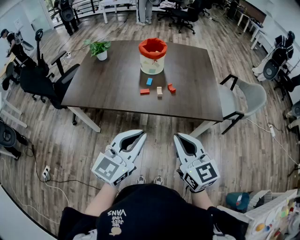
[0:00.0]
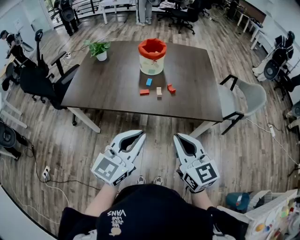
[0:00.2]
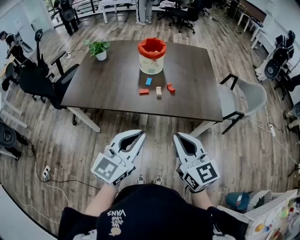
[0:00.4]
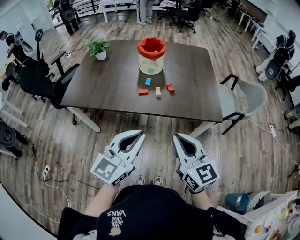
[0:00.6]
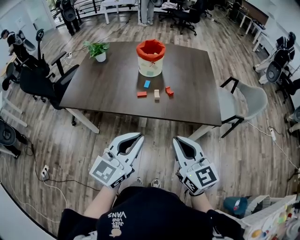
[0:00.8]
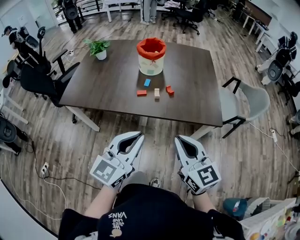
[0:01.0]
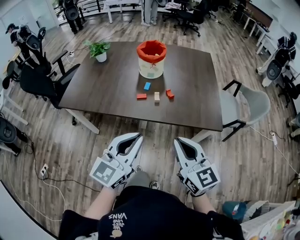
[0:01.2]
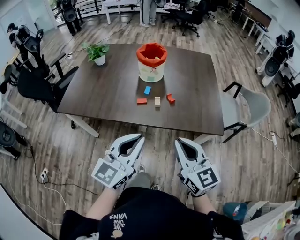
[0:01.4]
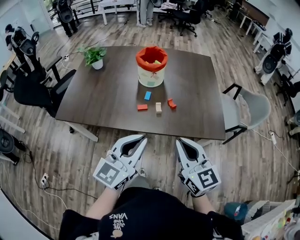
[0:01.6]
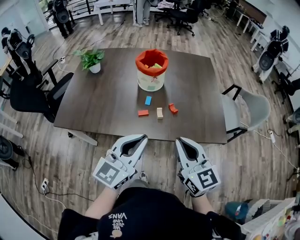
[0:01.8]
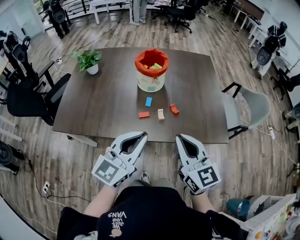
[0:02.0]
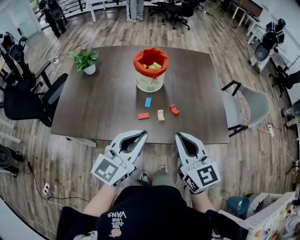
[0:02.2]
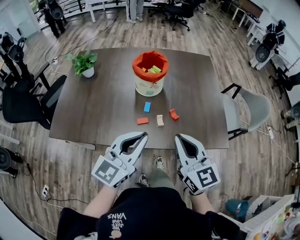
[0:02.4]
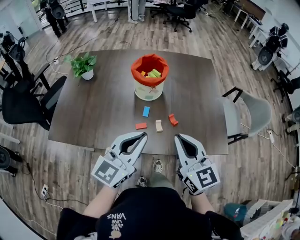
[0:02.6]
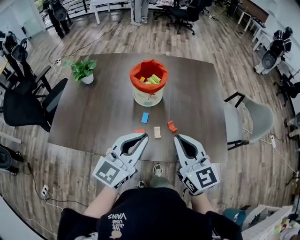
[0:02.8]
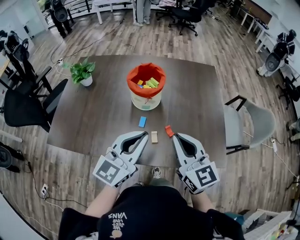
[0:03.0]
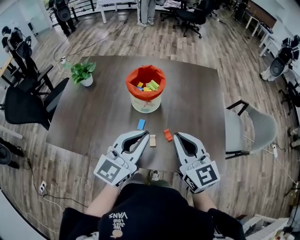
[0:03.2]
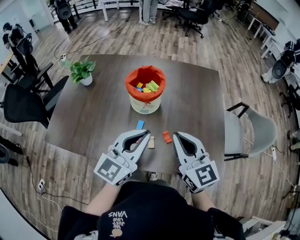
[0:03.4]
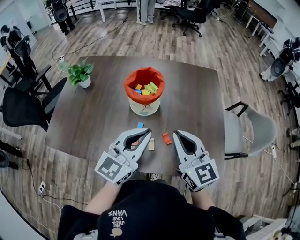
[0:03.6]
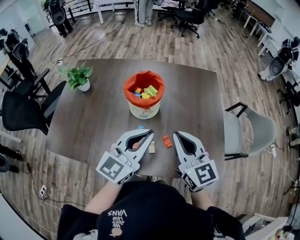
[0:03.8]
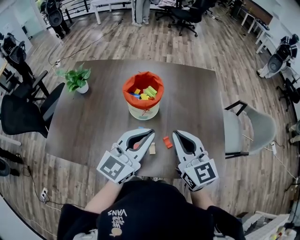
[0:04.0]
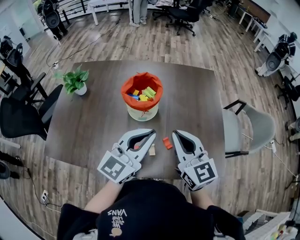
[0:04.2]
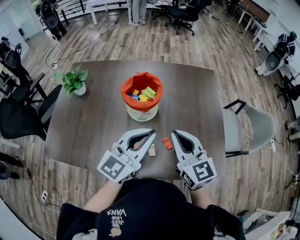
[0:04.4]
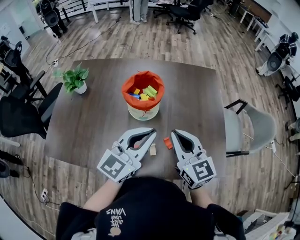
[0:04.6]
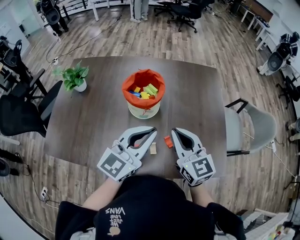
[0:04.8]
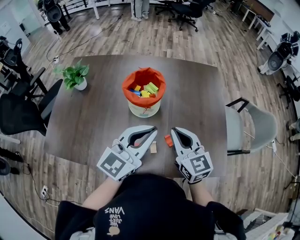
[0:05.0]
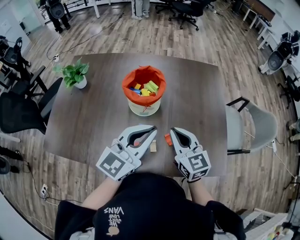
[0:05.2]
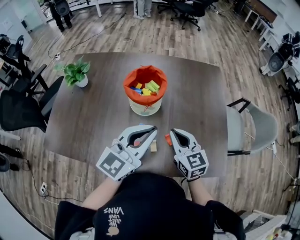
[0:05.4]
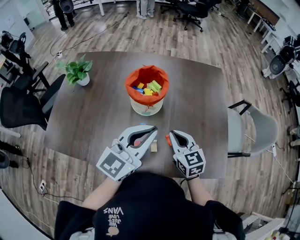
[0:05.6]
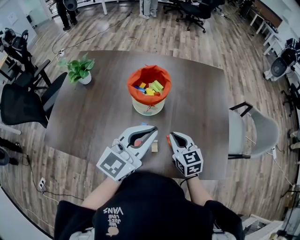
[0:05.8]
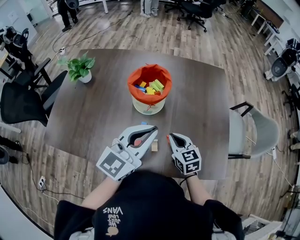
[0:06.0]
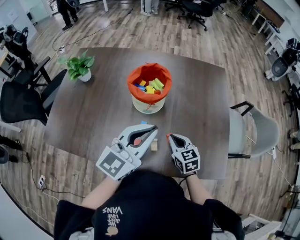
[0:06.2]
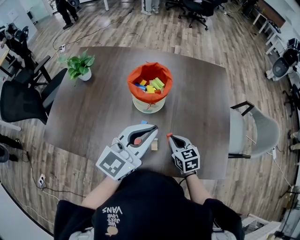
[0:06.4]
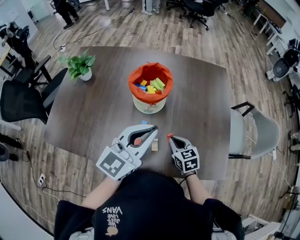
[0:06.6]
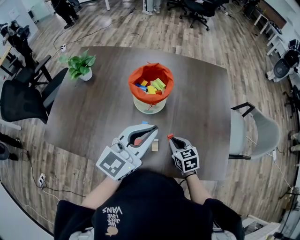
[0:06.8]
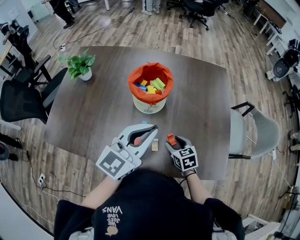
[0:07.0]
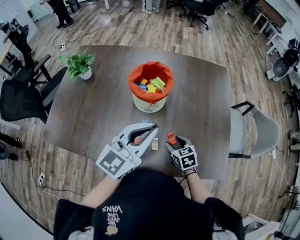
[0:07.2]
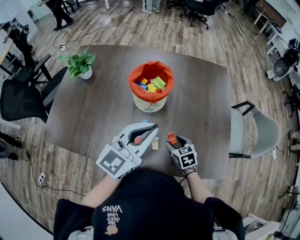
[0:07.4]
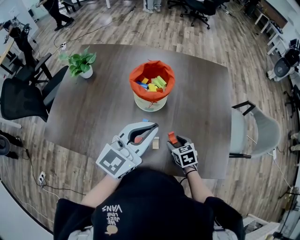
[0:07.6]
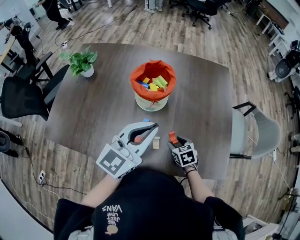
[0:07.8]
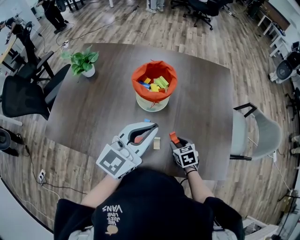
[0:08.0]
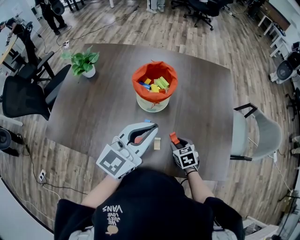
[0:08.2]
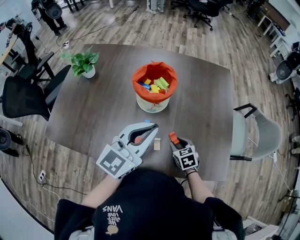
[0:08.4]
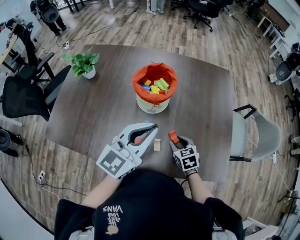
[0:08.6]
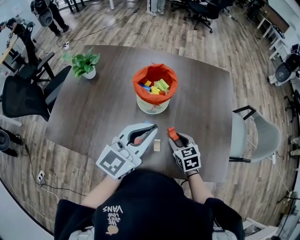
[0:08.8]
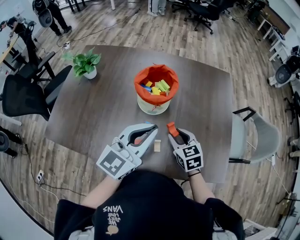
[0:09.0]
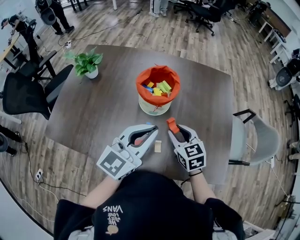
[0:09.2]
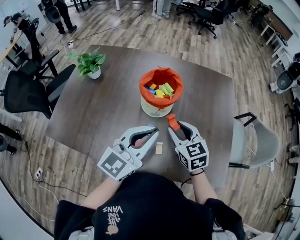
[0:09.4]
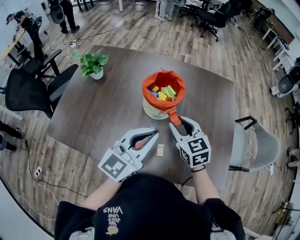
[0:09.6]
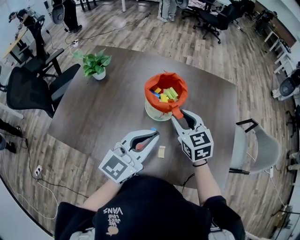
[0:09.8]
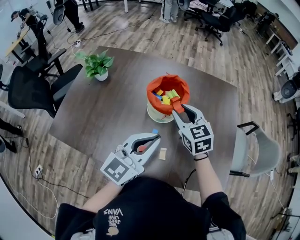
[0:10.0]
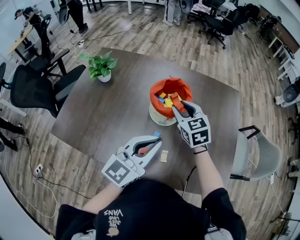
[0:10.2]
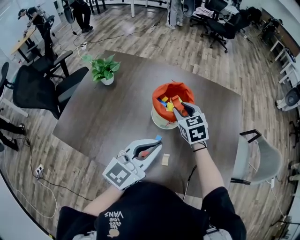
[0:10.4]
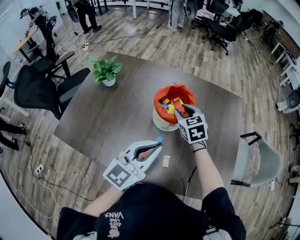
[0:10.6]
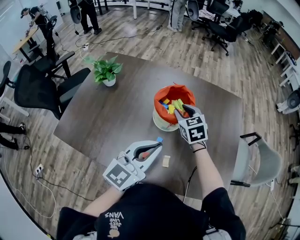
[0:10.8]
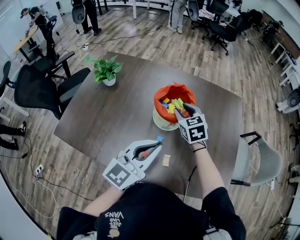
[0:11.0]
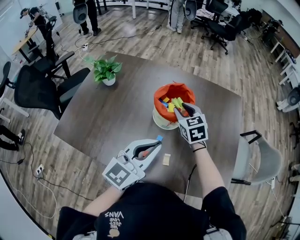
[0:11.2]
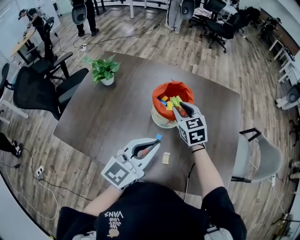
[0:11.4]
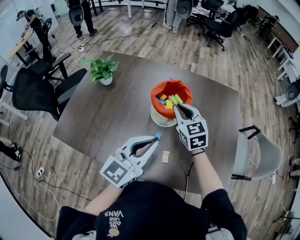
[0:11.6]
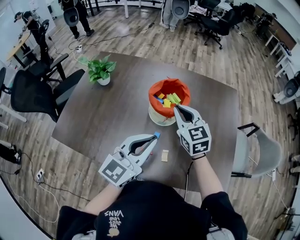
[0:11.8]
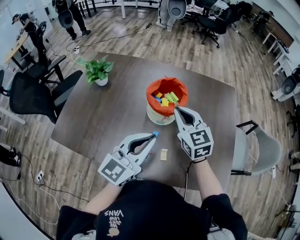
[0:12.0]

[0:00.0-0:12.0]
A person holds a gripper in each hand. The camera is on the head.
0:00.0 to 0:01.6: The grippers both shift forward by some 10 cm.
0:01.6 to 0:03.0: The two grippers go some 20 cm forward.
0:03.0 to 0:04.4: The two grippers go approximately 10 cm forward.
0:04.4 to 0:06.0: The right gripper goes approximately 20 cm downward, and turns by approximately 20 degrees.
0:06.0 to 0:07.6: The right gripper heads downward, covering approximately 10 cm, turns by roughly 20 degrees, and opens.
0:07.6 to 0:09.0: The right gripper travels upward by approximately 10 cm.
0:09.0 to 0:10.4: The right gripper travels forward, upward and to the left by about 20 cm.
0:10.4 to 0:12.0: The right gripper moves backward and upward, roughly 10 cm, and closes.

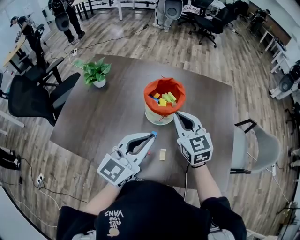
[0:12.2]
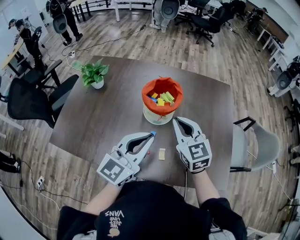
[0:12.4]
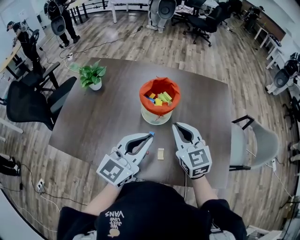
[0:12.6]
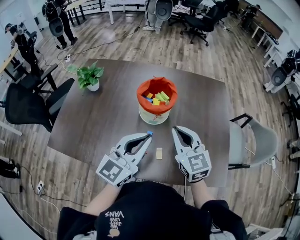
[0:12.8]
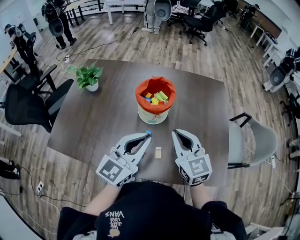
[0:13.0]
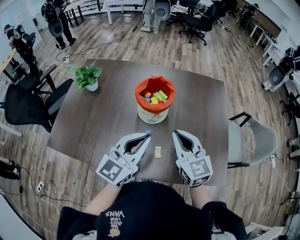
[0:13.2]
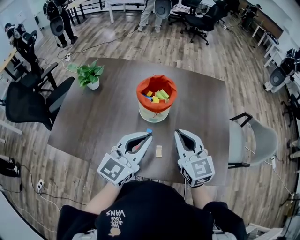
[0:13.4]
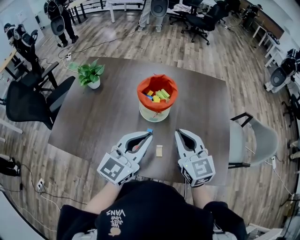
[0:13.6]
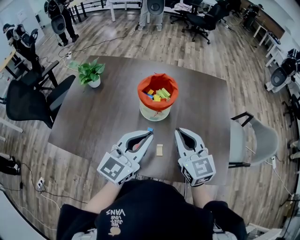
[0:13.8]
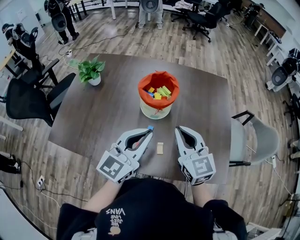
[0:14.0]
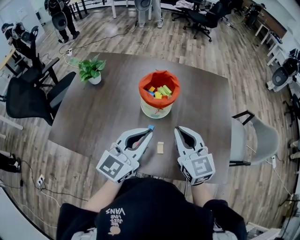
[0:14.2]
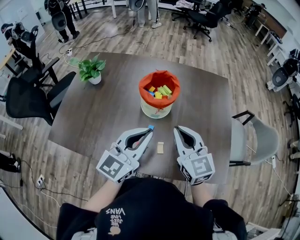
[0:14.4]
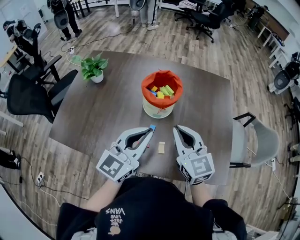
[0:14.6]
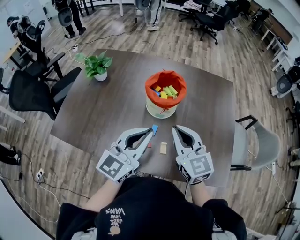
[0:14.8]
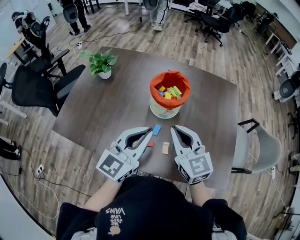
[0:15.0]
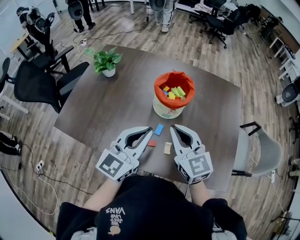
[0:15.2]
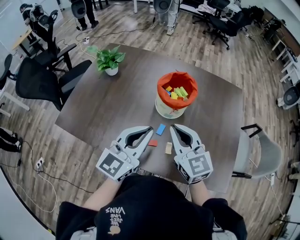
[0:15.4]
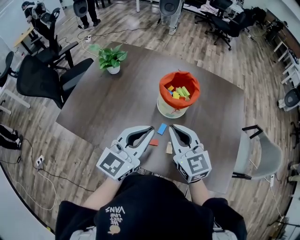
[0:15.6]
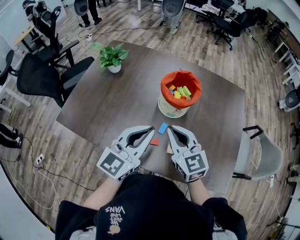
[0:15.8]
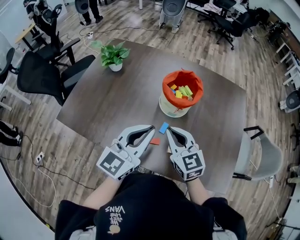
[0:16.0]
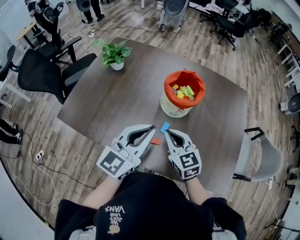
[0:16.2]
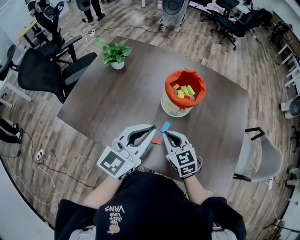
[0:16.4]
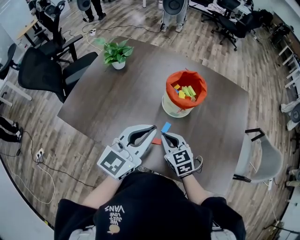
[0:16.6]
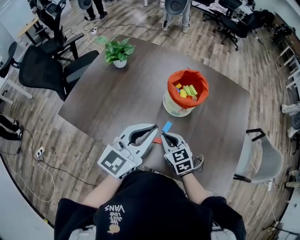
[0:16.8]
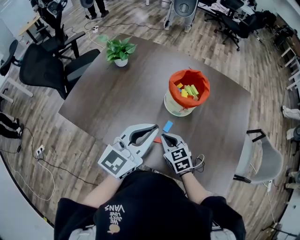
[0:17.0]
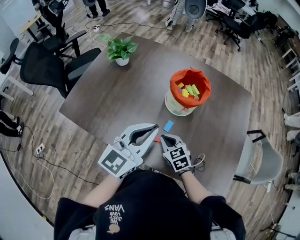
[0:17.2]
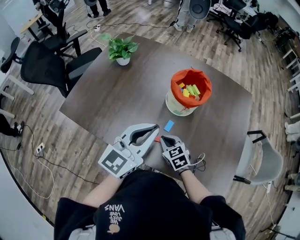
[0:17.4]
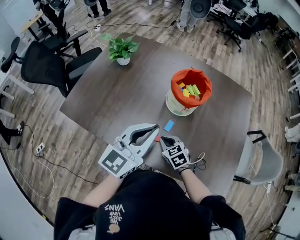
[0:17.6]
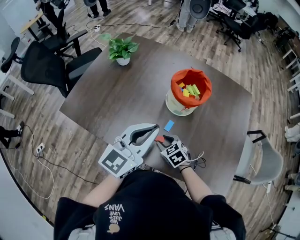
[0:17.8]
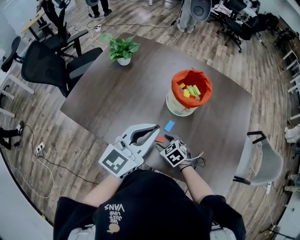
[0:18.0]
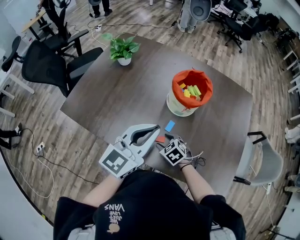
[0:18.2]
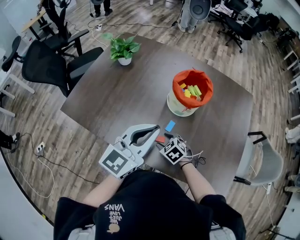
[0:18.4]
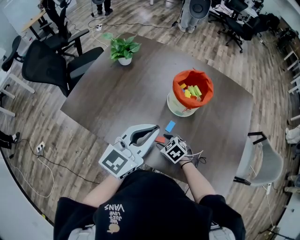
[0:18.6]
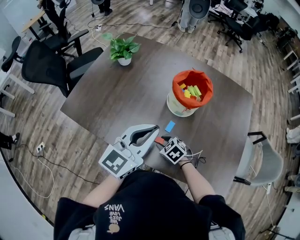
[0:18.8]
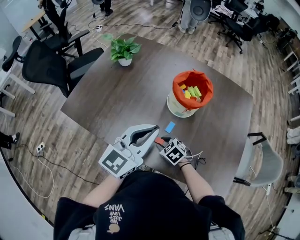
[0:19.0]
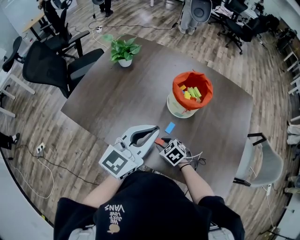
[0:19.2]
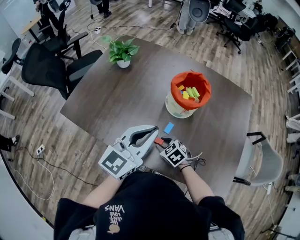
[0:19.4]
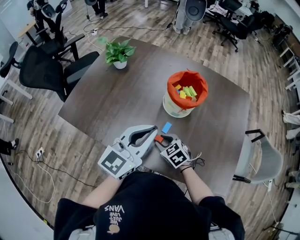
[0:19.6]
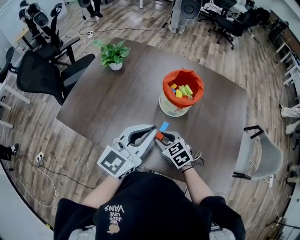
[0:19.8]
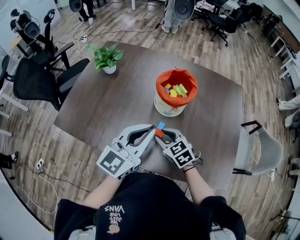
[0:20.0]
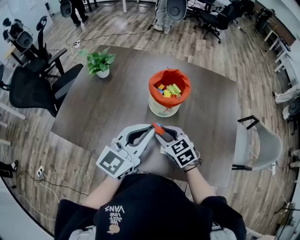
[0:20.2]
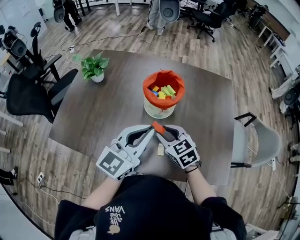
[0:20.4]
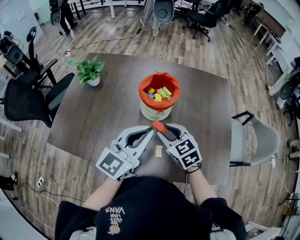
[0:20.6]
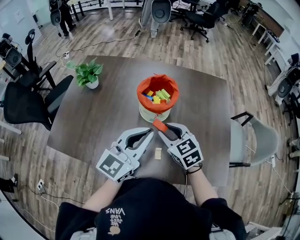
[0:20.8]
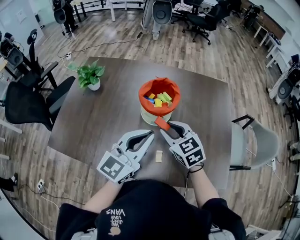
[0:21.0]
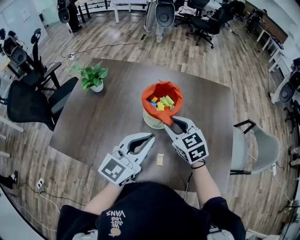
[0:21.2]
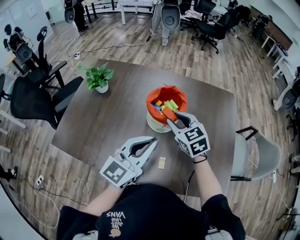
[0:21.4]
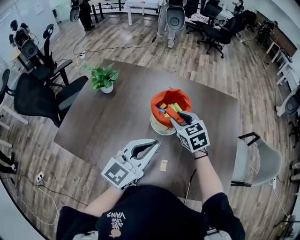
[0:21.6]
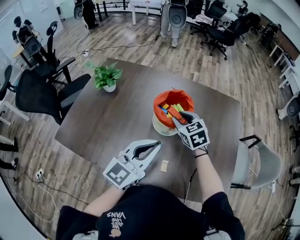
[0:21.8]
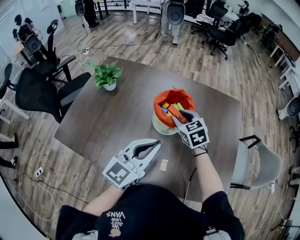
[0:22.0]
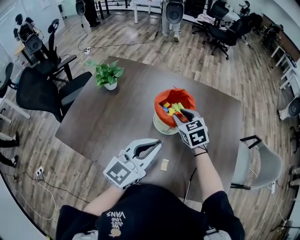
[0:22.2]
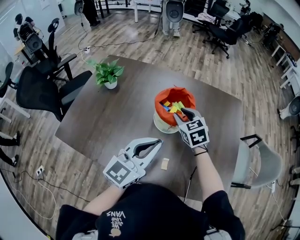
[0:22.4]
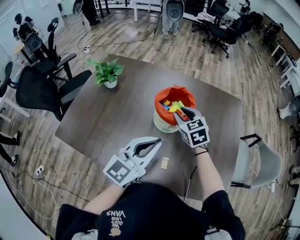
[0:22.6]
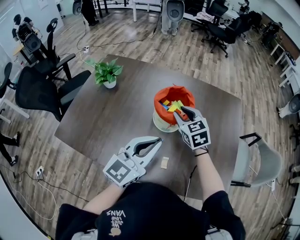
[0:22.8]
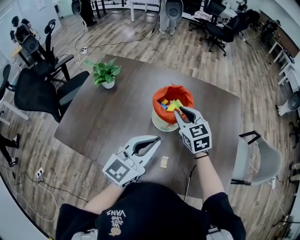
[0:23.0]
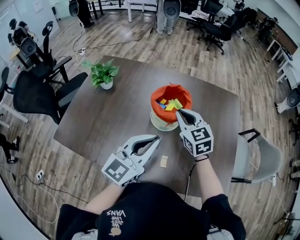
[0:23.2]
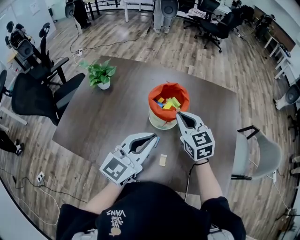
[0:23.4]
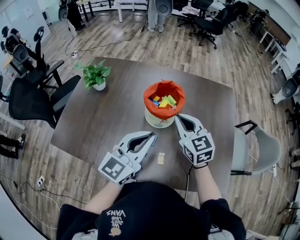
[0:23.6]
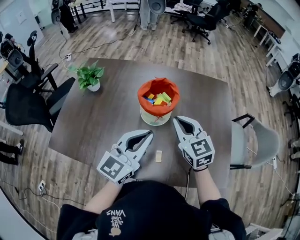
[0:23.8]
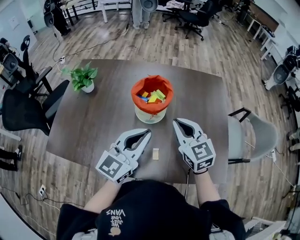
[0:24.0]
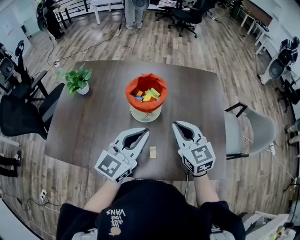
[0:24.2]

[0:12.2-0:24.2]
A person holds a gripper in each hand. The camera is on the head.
0:12.2 to 0:13.8: The right gripper is displaced backward by roughly 10 cm.
0:13.8 to 0:15.2: The right gripper is displaced to the left by approximately 5 cm.
0:15.2 to 0:16.6: The right gripper heads downward, covering approximately 15 cm, and changes its angle by approximately 20 degrees.
0:16.6 to 0:18.2: The right gripper heads downward, covering approximately 10 cm, turns by about 30 degrees, and opens up.
0:18.2 to 0:19.8: The right gripper shifts some 10 cm upward, and closes up.
0:19.8 to 0:21.2: The right gripper goes roughly 20 cm upward, forward and to the right, and turns by roughly 20 degrees, while the left gripper heads to the right, covering approximately 5 cm.
0:21.2 to 0:22.6: The right gripper shifts roughly 10 cm forward.
0:22.6 to 0:24.2: The right gripper shifts some 15 cm backward, to the right and upward, changes its angle by some 20 degrees, and closes.
